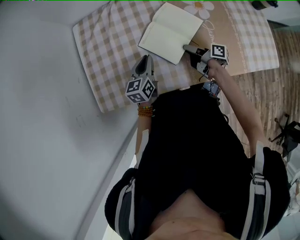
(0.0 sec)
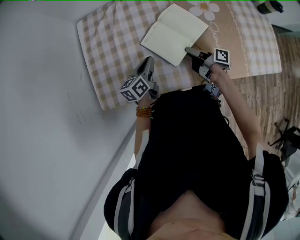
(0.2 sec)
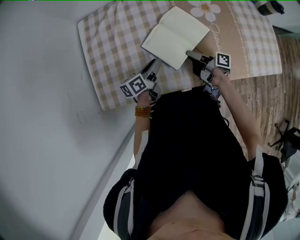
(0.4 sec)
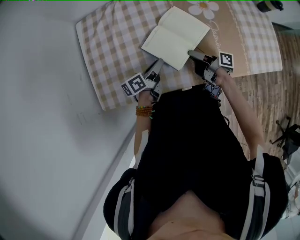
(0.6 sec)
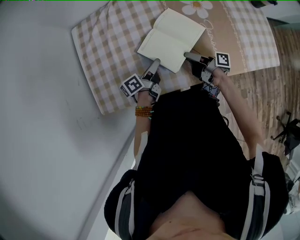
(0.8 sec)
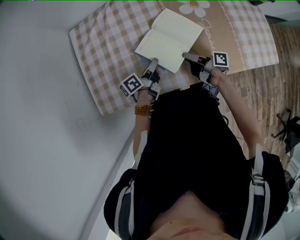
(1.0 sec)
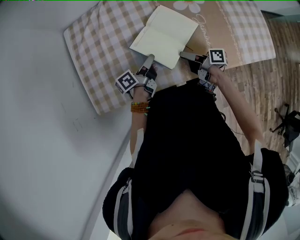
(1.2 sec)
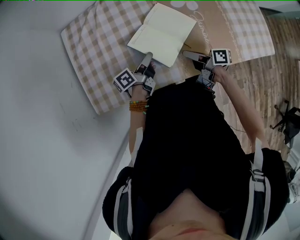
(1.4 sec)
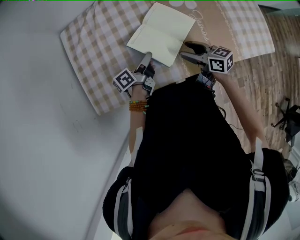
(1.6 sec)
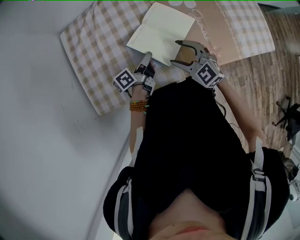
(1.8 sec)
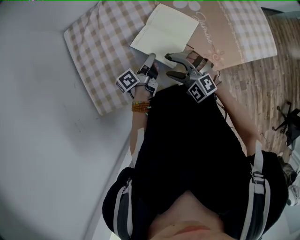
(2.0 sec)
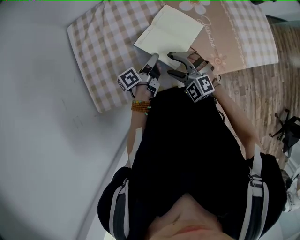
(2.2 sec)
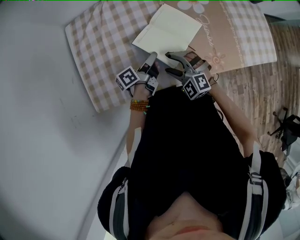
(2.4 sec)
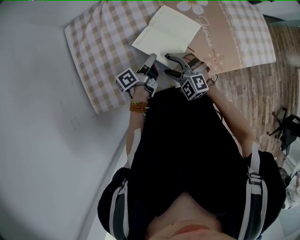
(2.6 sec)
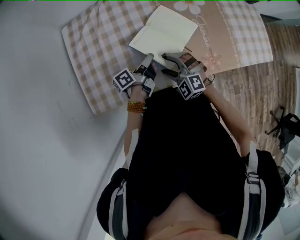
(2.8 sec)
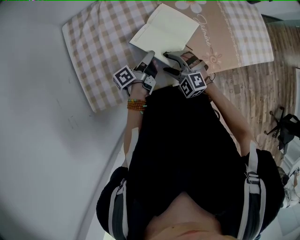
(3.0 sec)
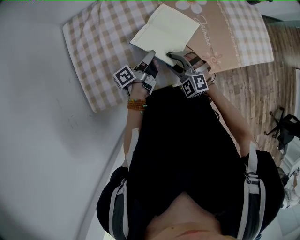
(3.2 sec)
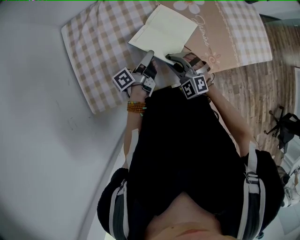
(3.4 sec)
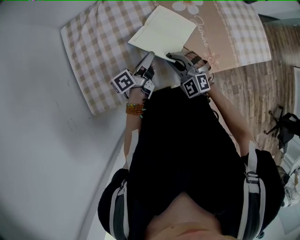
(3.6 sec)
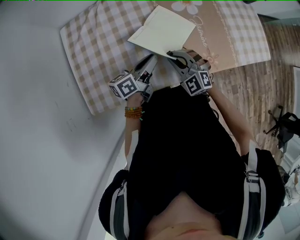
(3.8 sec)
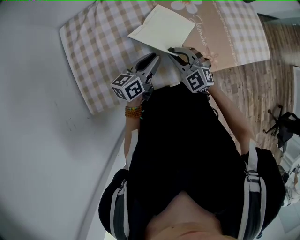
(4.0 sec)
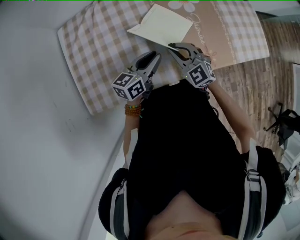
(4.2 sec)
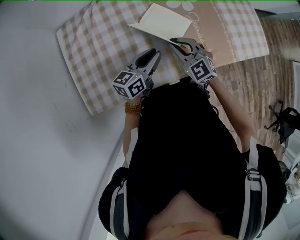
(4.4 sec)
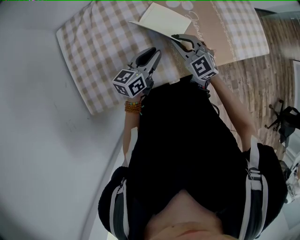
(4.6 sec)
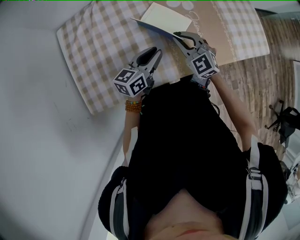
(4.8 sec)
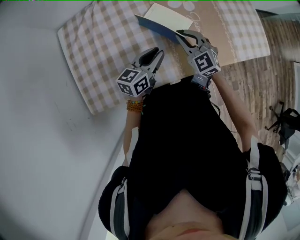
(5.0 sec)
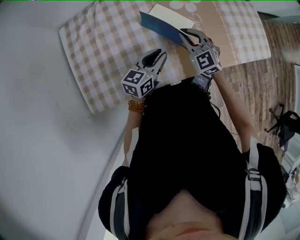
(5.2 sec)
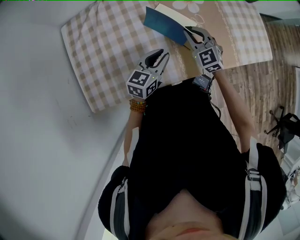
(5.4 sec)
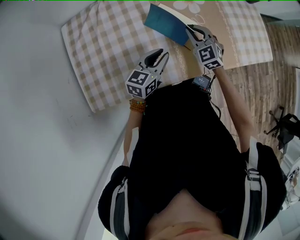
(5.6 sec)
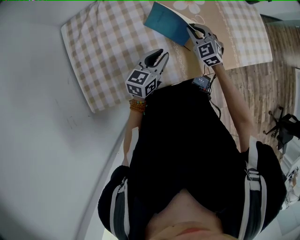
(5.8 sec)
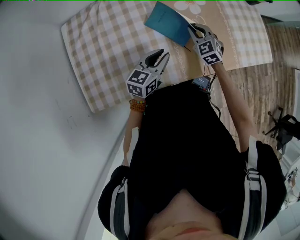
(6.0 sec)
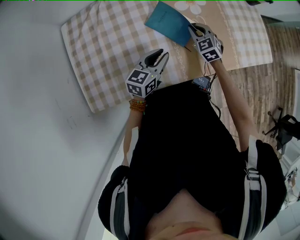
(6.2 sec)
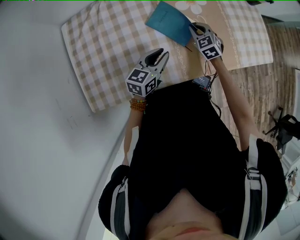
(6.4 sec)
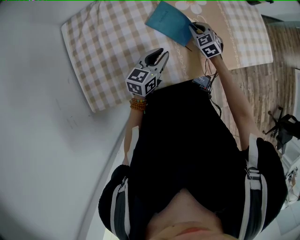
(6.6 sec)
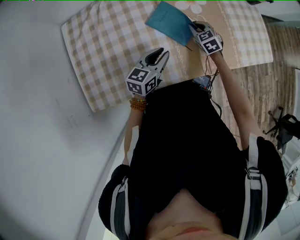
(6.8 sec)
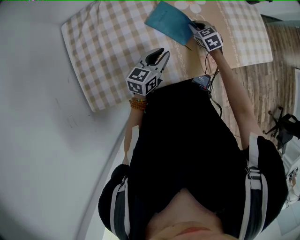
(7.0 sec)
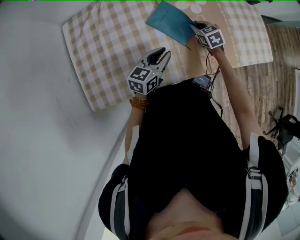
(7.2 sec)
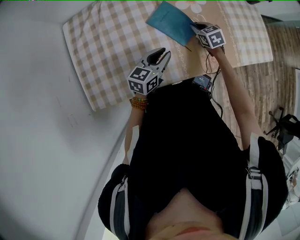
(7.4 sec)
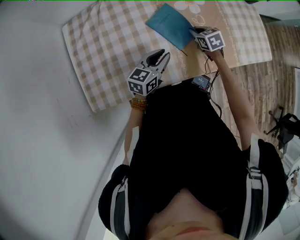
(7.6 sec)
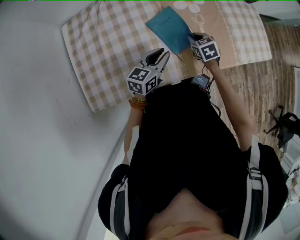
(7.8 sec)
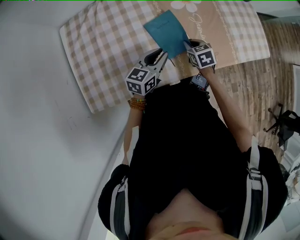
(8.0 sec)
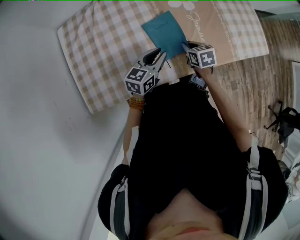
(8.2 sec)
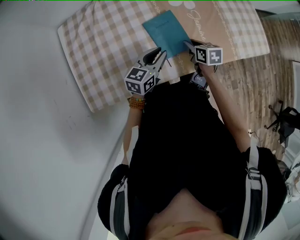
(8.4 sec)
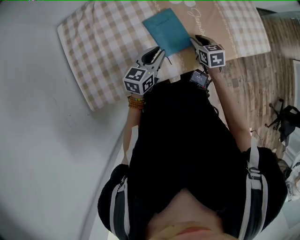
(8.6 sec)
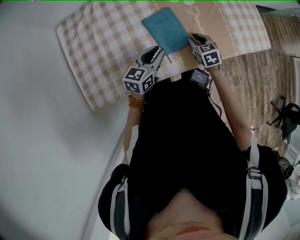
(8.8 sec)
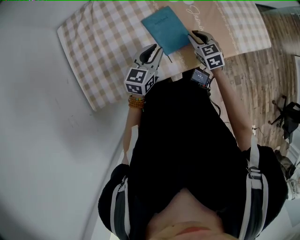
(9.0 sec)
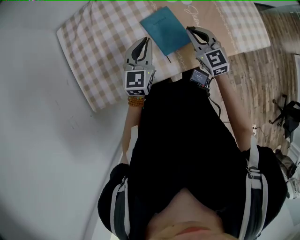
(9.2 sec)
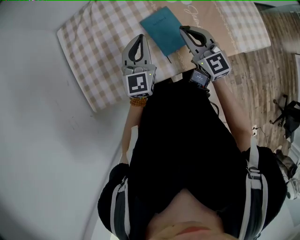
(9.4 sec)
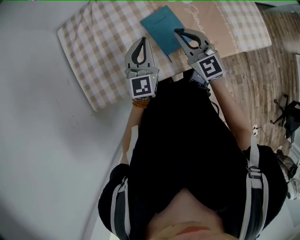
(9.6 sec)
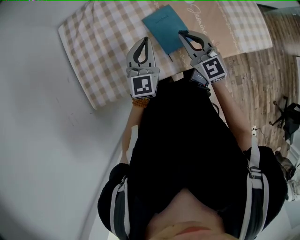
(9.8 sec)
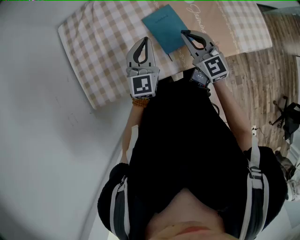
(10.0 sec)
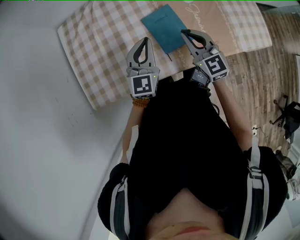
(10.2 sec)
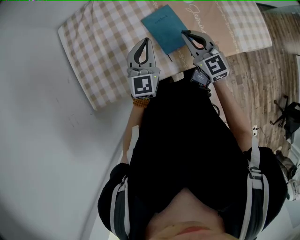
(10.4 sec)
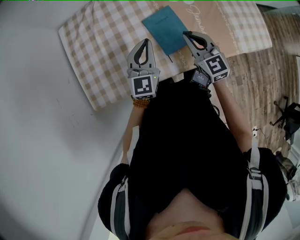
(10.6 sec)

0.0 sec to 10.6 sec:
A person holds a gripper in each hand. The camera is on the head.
0.0 sec to 1.6 sec: The right gripper ends up about 5 cm from where it was, rolls counterclockwise, seen from behind, by some 50 degrees, and opens; the left gripper travels to the right by approximately 5 cm, and rolls counterclockwise, seen from behind, by roughly 50 degrees.
1.6 sec to 3.0 sec: The right gripper travels to the left by roughly 10 cm, and twists approximately 80 degrees counterclockwise, seen from behind.
3.0 sec to 4.6 sec: The left gripper shifts roughly 5 cm upward, and rotates around the line of its fingers by about 50 degrees, clockwise from behind; the right gripper shifts about 15 cm forward, upward and to the right, changes its angle by about 30 degrees, and closes.
4.6 sec to 6.0 sec: The right gripper heads forward, downward and to the right, covering about 15 cm.
6.0 sec to 7.6 sec: The right gripper moves downward, approximately 5 cm, and turns by roughly 30 degrees.
7.6 sec to 9.0 sec: The right gripper travels backward by some 5 cm.
9.0 sec to 10.6 sec: The right gripper goes approximately 15 cm upward and to the left, and swivels roughly 30 degrees. The left gripper travels upward by approximately 5 cm, swivels approximately 30 degrees, and closes up.

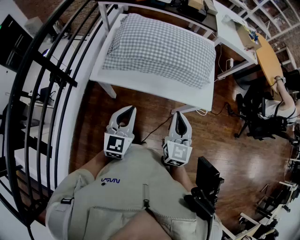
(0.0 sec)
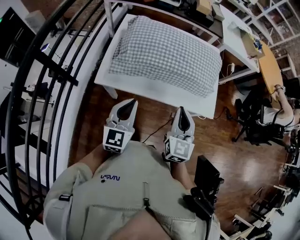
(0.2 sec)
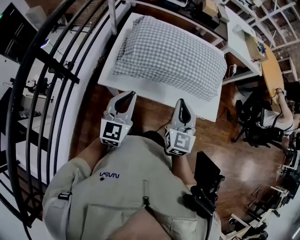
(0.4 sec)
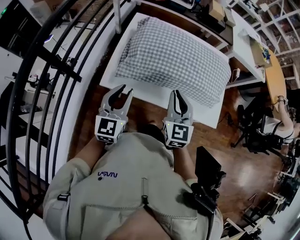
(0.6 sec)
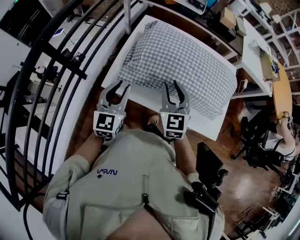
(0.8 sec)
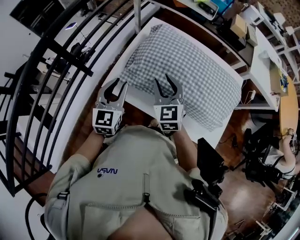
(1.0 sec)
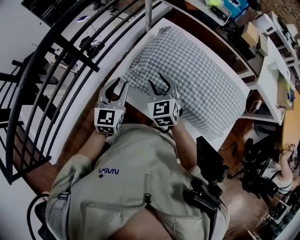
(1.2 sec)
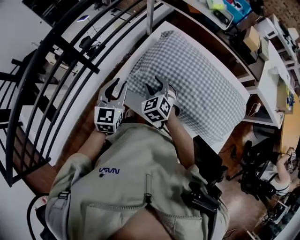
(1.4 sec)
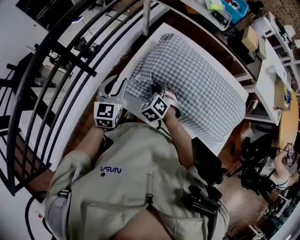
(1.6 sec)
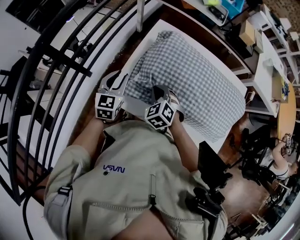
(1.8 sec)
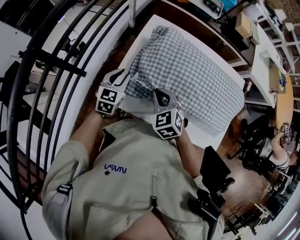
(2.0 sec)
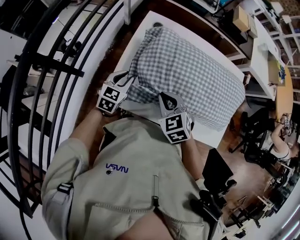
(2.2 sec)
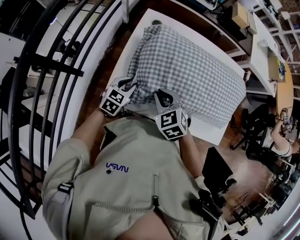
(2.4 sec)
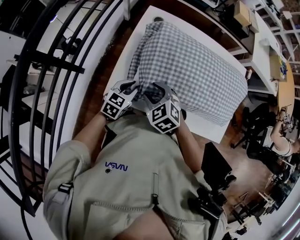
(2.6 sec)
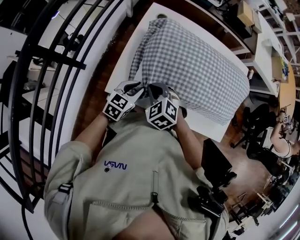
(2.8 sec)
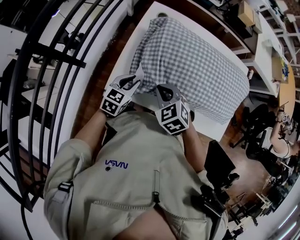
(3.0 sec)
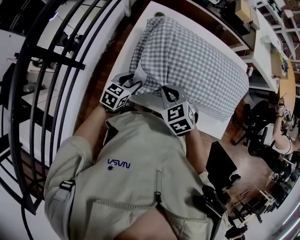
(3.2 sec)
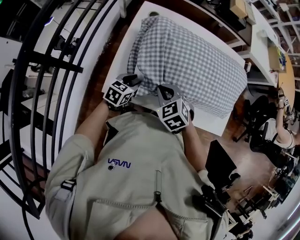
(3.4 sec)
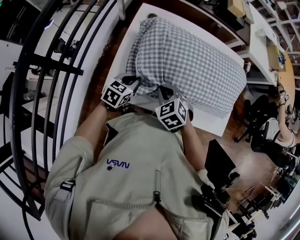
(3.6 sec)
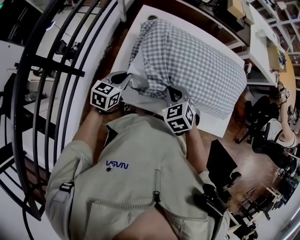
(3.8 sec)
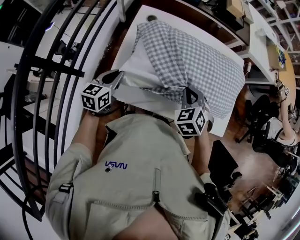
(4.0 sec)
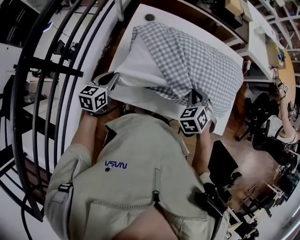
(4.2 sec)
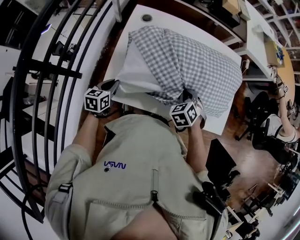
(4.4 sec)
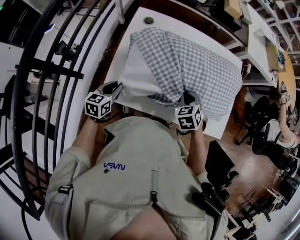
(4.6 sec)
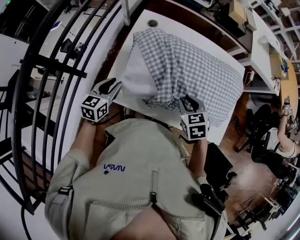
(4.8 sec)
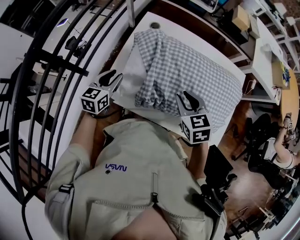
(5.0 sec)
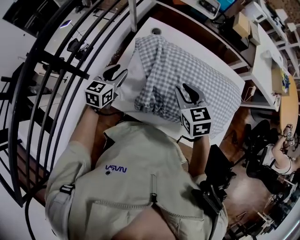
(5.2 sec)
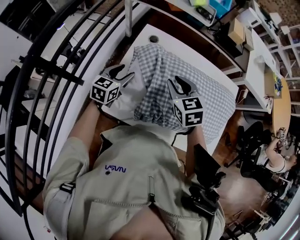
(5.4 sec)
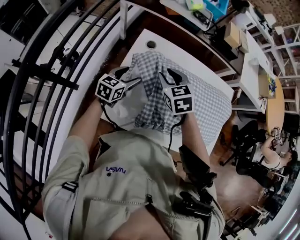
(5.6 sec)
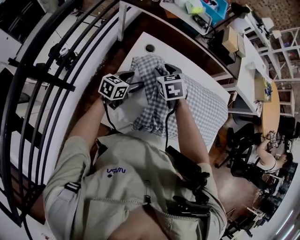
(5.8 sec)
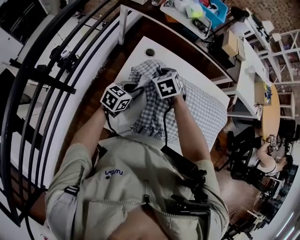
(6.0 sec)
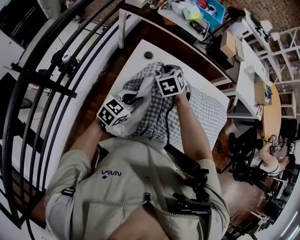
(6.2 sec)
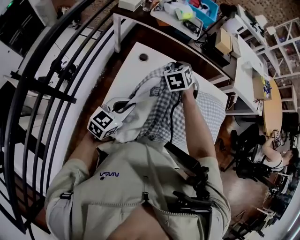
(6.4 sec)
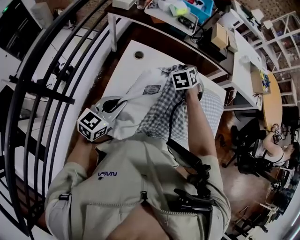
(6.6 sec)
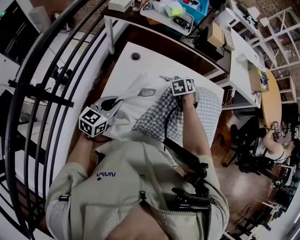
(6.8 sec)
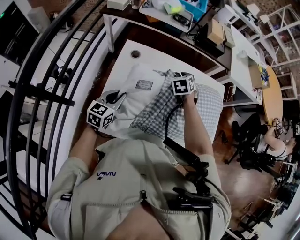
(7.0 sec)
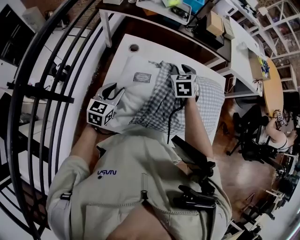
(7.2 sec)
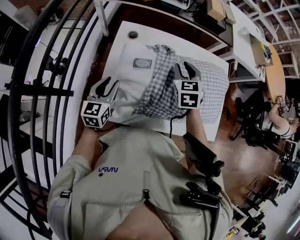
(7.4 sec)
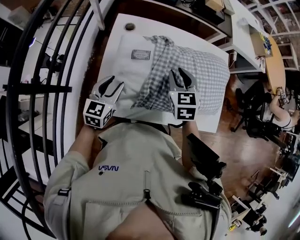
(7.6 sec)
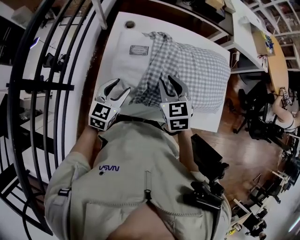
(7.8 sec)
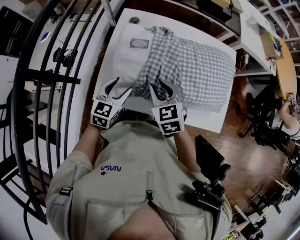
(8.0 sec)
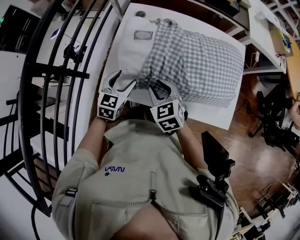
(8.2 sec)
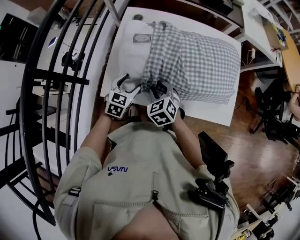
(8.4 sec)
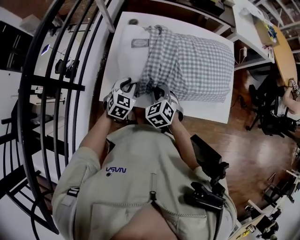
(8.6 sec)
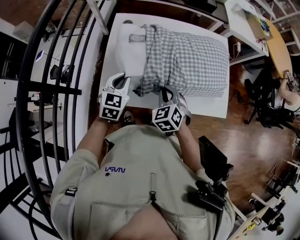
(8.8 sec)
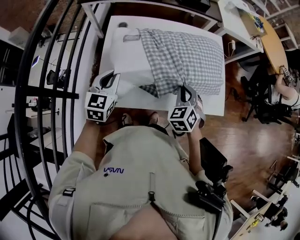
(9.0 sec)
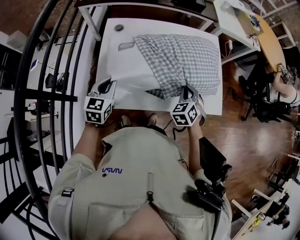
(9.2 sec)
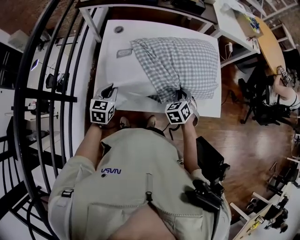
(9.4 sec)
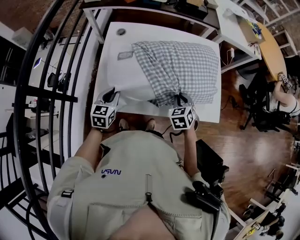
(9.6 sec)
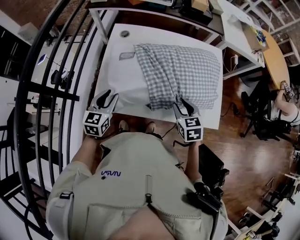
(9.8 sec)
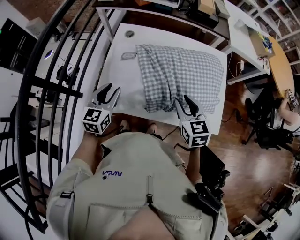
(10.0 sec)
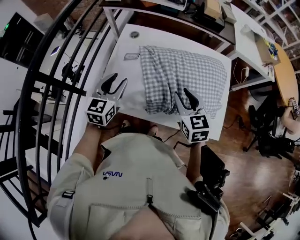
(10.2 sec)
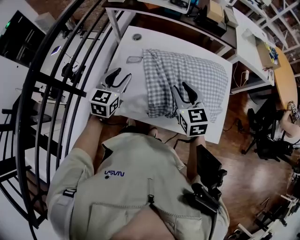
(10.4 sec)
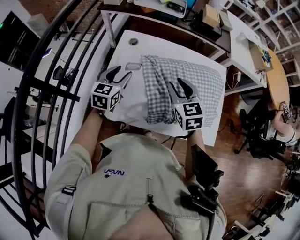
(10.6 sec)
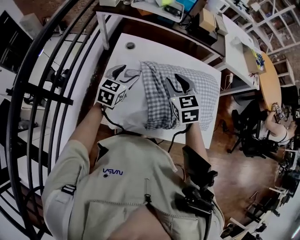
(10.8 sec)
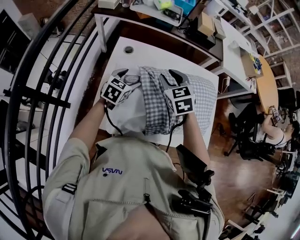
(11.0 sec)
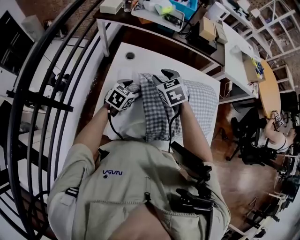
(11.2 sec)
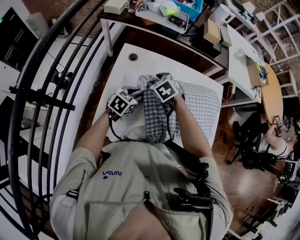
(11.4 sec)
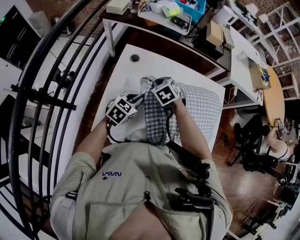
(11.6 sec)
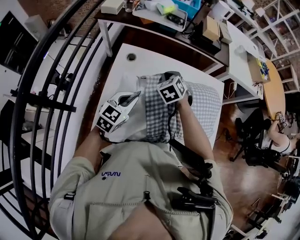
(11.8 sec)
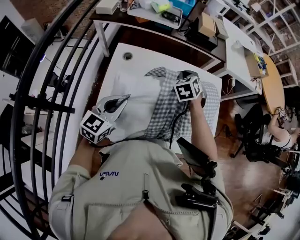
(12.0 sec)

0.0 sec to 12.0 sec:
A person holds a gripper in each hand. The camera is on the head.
0.0 sec to 1.6 sec: The right gripper shifts by about 40 cm, tips its fingers downward by some 40 degrees, and opens up. Meanwhile the left gripper changes place by approximately 35 cm, and swivels about 30 degrees.
1.6 sec to 3.0 sec: The right gripper moves backward and upward, roughly 10 cm, and closes up. Meanwhile the left gripper shifts some 15 cm downward and to the right, and swivels some 40 degrees.
3.0 sec to 4.4 sec: The right gripper shifts by some 20 cm, and rotates roughly 30 degrees; the left gripper moves up and down over some 10 cm, changing direction 2 times.
4.4 sec to 6.0 sec: The right gripper changes place by about 30 cm, and opens and closes again. The left gripper moves roughly 20 cm, swivels some 20 degrees, and opens and closes again.
6.0 sec to 7.6 sec: The left gripper heads backward, covering roughly 10 cm, travels upward and back again, roughly 10 cm each way, and opens. Meanwhile the right gripper travels to the right and backward by about 20 cm, and rotates some 30 degrees.
7.6 sec to 9.0 sec: The right gripper changes place by about 15 cm, swivels roughly 20 degrees, and closes up; the left gripper closes its fingers.
9.0 sec to 10.4 sec: The left gripper reaches roughly 10 cm downward, then returns, and opens up. Meanwhile the right gripper heads upward, covering roughly 5 cm, swivels about 40 degrees, and opens its fingers.
10.4 sec to 12.0 sec: The right gripper travels downward and back again, approximately 10 cm each way, turns by some 40 degrees, and closes; the left gripper reaches approximately 10 cm downward, then returns, rotates roughly 20 degrees, and closes its fingers.
